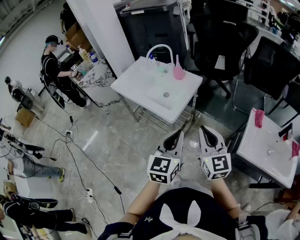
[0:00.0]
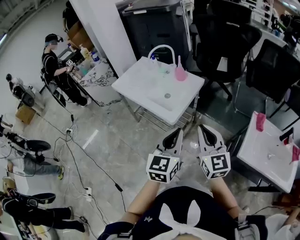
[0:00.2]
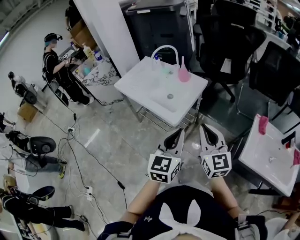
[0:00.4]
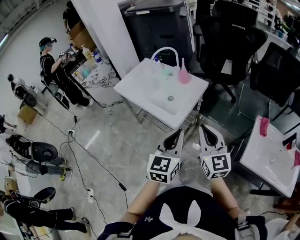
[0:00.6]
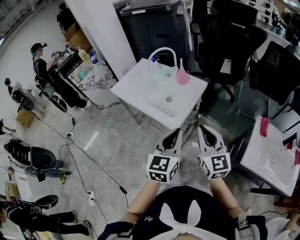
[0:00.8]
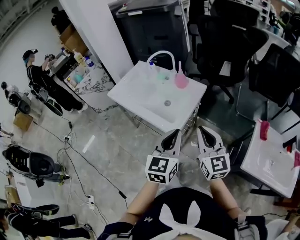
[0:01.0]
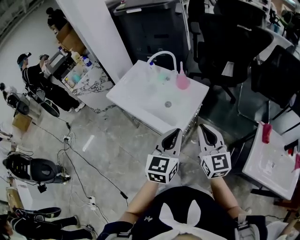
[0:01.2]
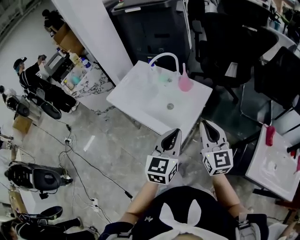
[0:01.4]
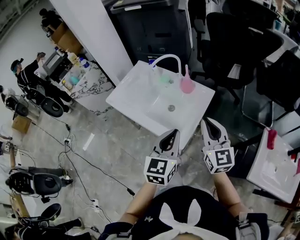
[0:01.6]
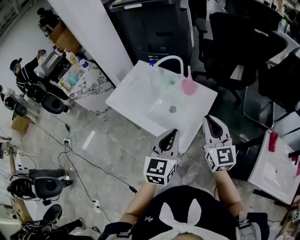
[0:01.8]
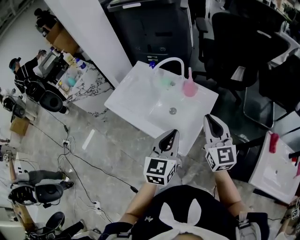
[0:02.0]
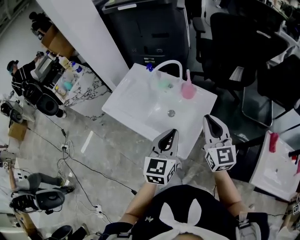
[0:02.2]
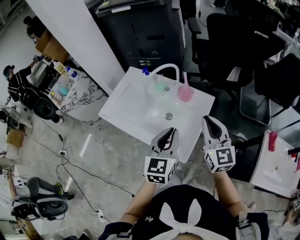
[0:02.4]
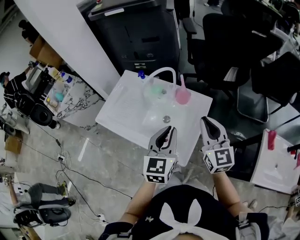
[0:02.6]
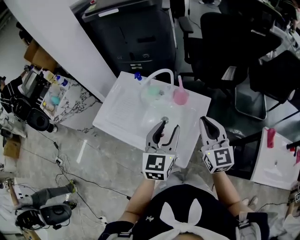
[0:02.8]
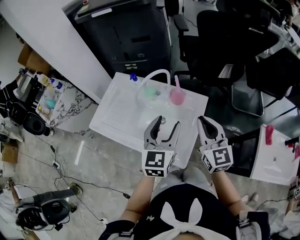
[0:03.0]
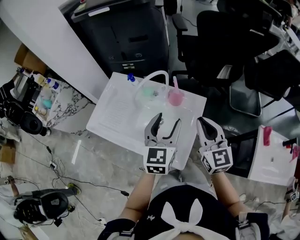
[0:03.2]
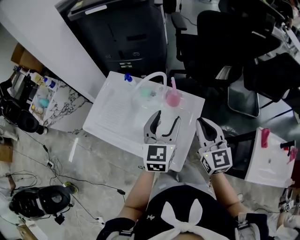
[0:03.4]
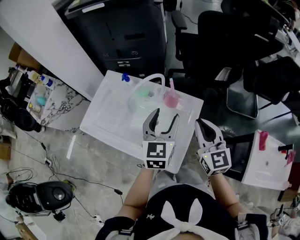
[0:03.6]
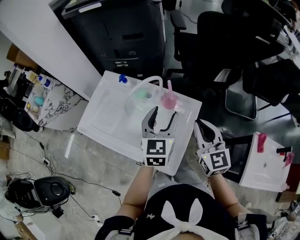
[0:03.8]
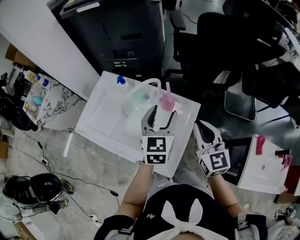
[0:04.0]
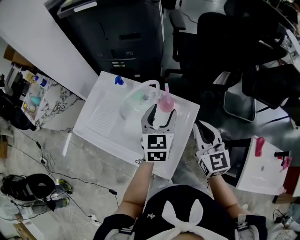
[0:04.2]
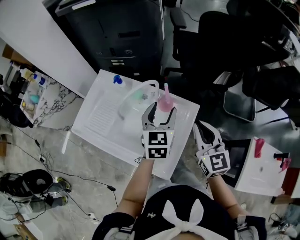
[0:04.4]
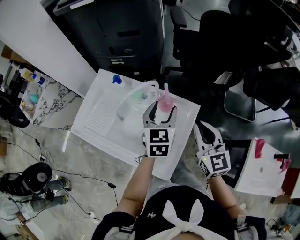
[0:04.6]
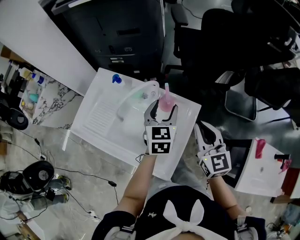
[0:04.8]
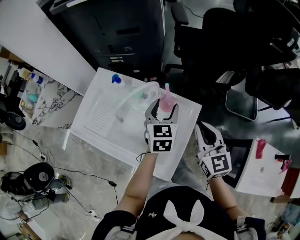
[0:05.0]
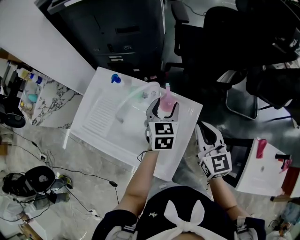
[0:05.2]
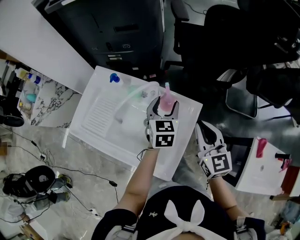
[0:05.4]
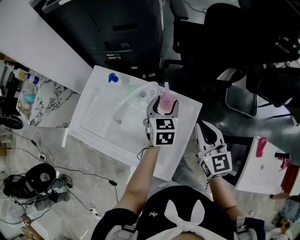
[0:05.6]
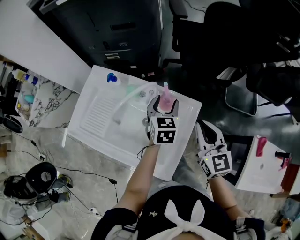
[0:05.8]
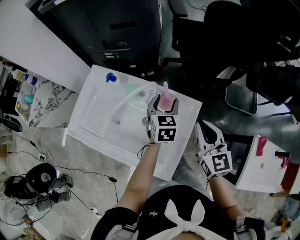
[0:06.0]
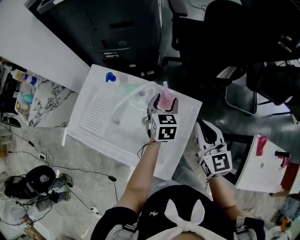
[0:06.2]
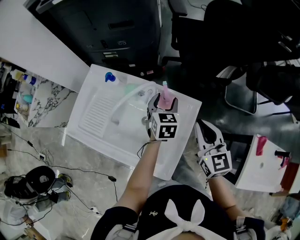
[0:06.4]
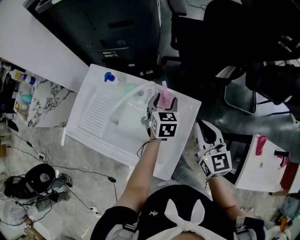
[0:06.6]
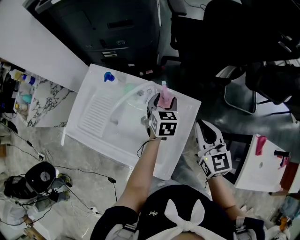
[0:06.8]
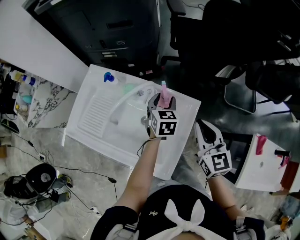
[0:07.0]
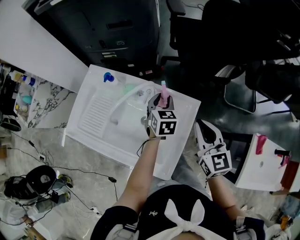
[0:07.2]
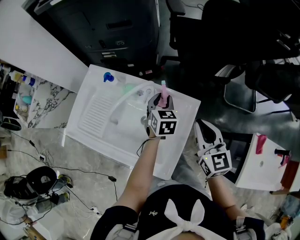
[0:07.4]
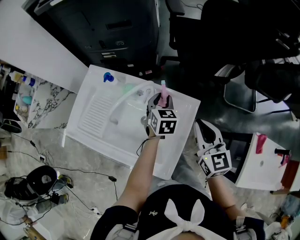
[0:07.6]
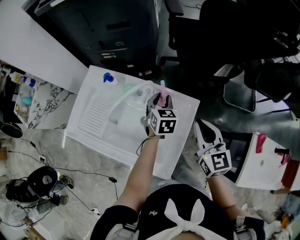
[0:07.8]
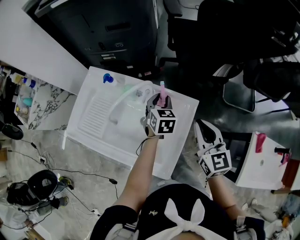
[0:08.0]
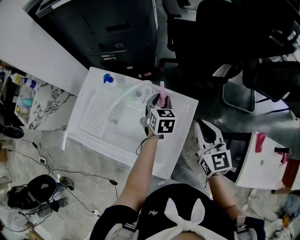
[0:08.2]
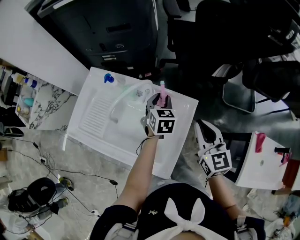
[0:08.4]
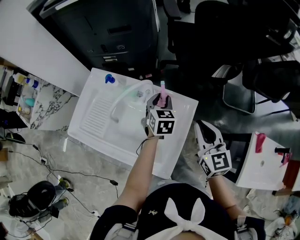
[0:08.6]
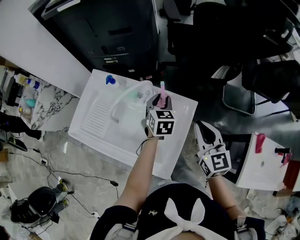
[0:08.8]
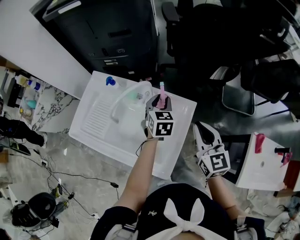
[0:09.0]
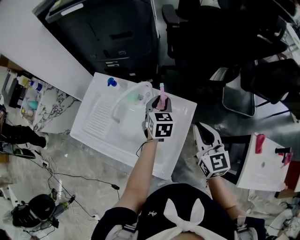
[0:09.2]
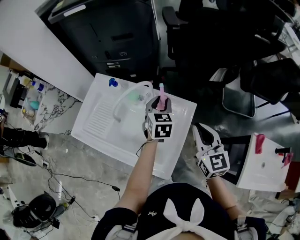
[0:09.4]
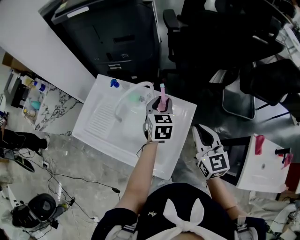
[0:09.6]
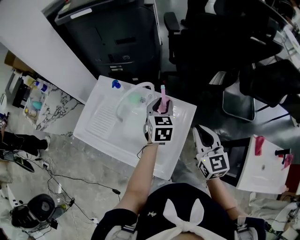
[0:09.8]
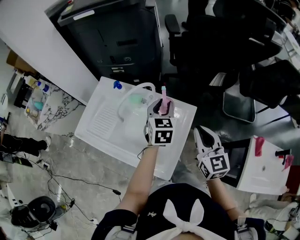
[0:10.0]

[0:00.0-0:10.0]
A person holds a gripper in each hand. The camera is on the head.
0:00.0 to 0:01.4: Both grippers move forward, approximately 20 cm.
0:01.4 to 0:02.8: Both grippers move forward, roughly 15 cm. The left gripper opens.
0:02.8 to 0:04.2: The right gripper shifts roughly 5 cm forward. Meanwhile the left gripper travels forward by roughly 15 cm.
0:04.2 to 0:05.8: The left gripper heads downward and forward, covering about 10 cm.
0:05.8 to 0:07.2: The left gripper closes its fingers.
0:07.2 to 0:08.6: The grippers move only a little.
0:08.6 to 0:10.0: The left gripper is displaced upward by some 10 cm.

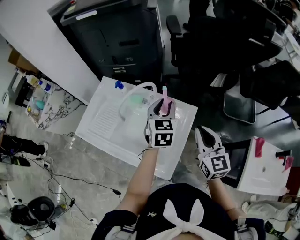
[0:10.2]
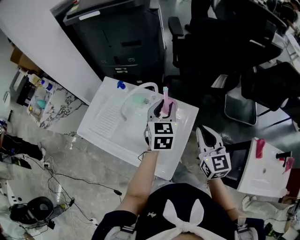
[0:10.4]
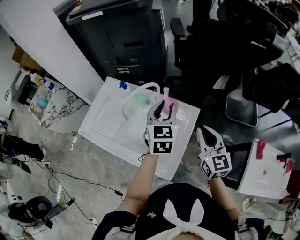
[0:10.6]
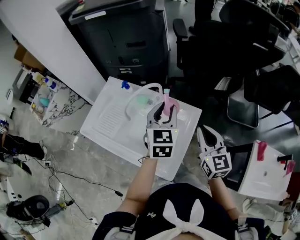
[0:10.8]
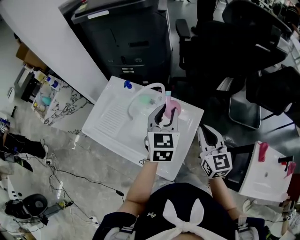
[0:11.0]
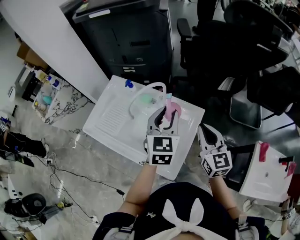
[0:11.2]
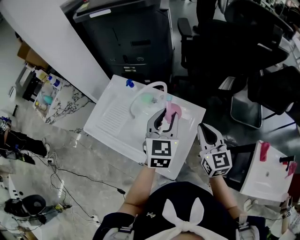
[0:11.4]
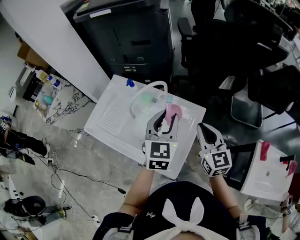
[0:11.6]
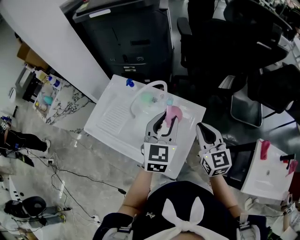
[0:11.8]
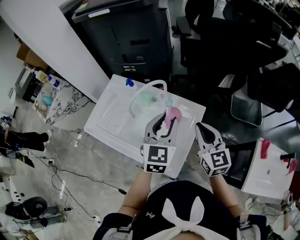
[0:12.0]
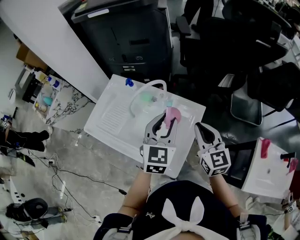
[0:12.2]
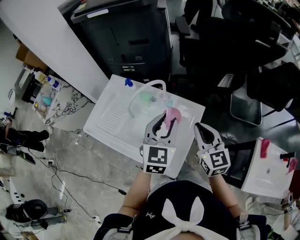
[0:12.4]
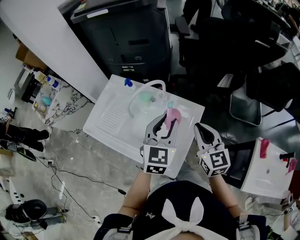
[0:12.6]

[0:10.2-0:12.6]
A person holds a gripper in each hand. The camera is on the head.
0:10.2 to 0:11.4: The left gripper moves backward and upward, about 10 cm.
0:11.4 to 0:12.6: The grippers stay close to where they were, moving slightly.

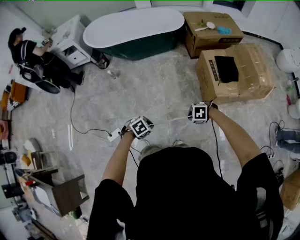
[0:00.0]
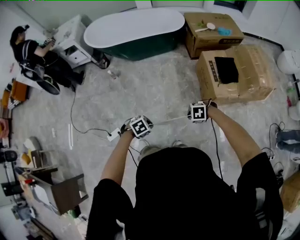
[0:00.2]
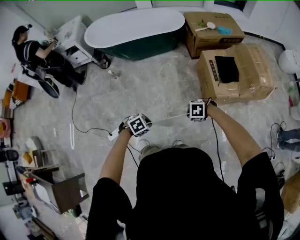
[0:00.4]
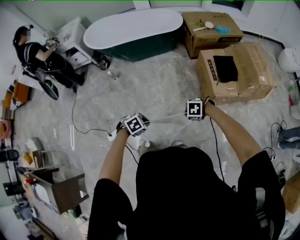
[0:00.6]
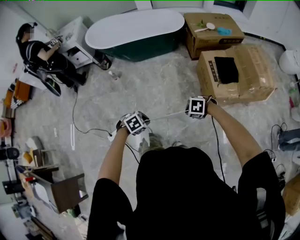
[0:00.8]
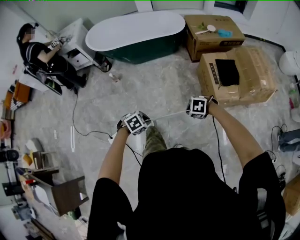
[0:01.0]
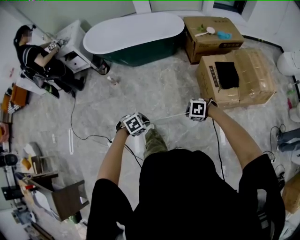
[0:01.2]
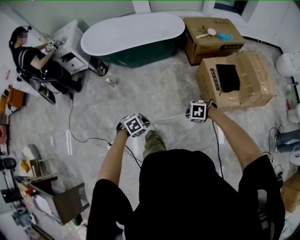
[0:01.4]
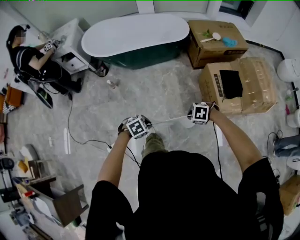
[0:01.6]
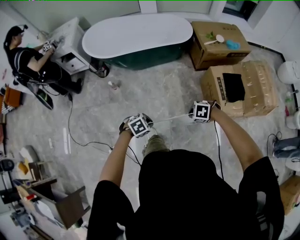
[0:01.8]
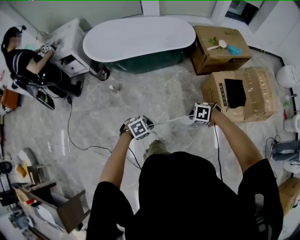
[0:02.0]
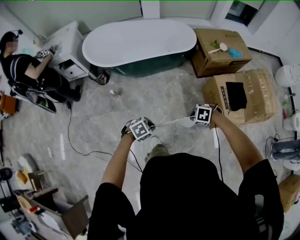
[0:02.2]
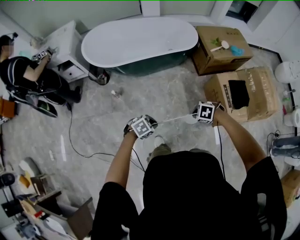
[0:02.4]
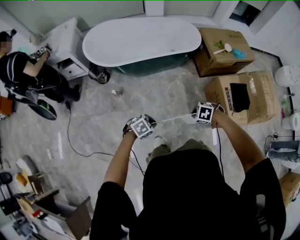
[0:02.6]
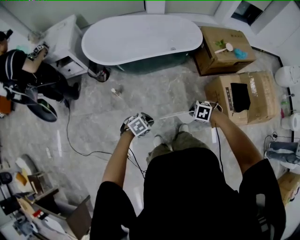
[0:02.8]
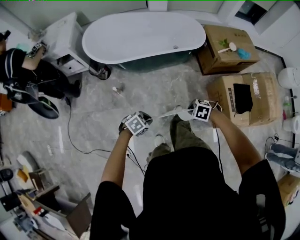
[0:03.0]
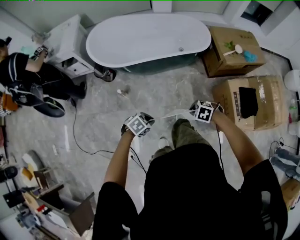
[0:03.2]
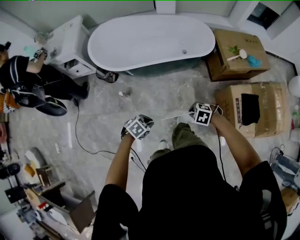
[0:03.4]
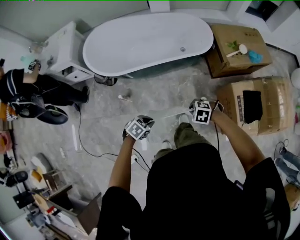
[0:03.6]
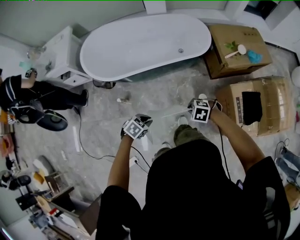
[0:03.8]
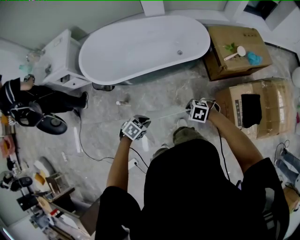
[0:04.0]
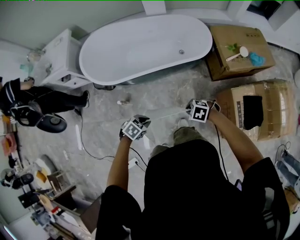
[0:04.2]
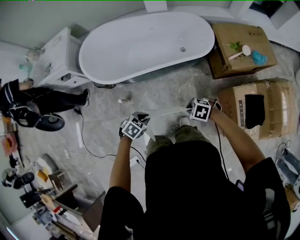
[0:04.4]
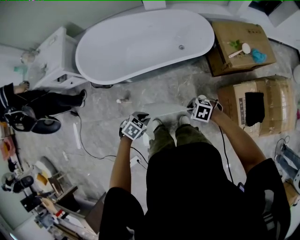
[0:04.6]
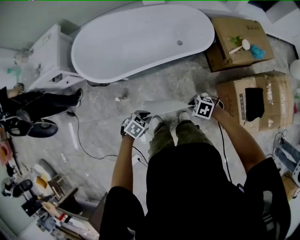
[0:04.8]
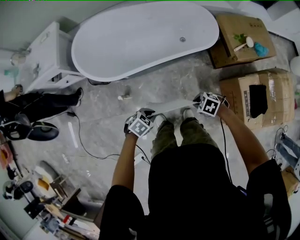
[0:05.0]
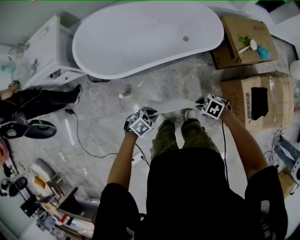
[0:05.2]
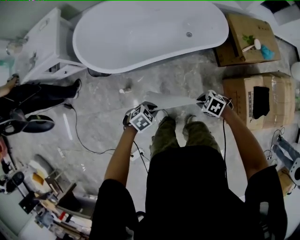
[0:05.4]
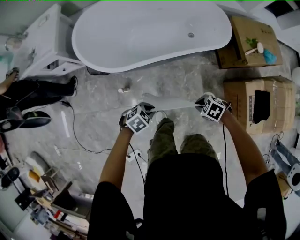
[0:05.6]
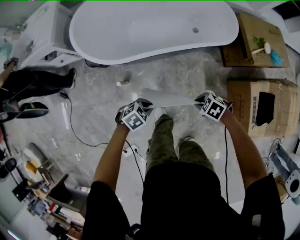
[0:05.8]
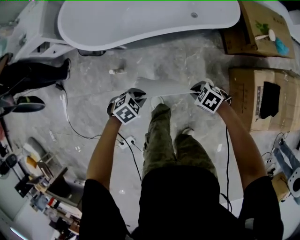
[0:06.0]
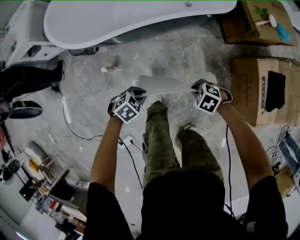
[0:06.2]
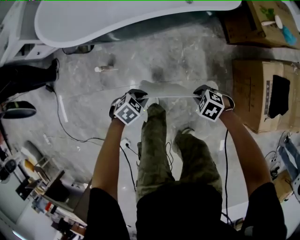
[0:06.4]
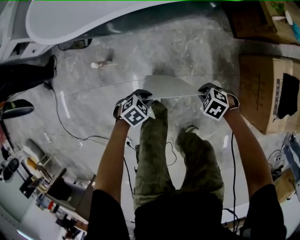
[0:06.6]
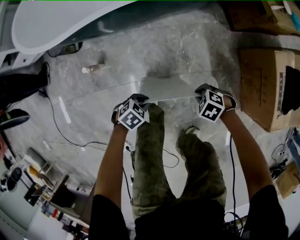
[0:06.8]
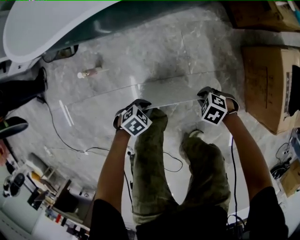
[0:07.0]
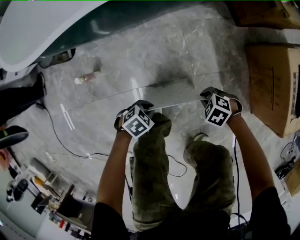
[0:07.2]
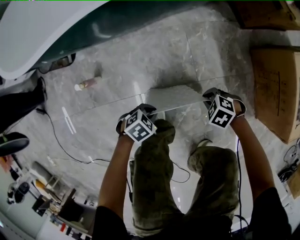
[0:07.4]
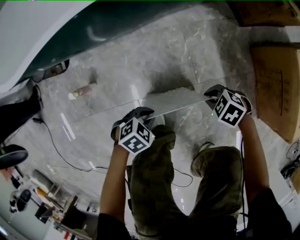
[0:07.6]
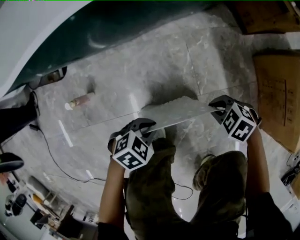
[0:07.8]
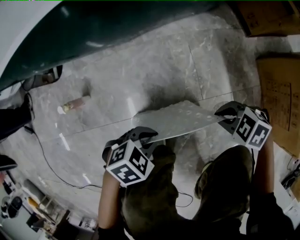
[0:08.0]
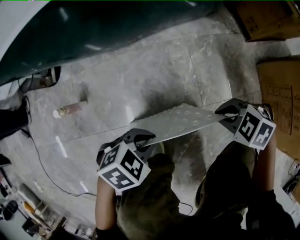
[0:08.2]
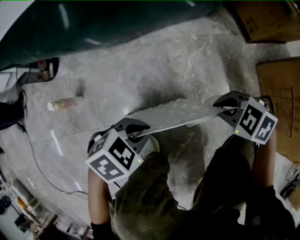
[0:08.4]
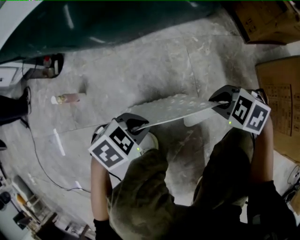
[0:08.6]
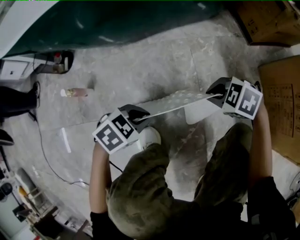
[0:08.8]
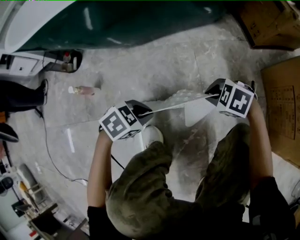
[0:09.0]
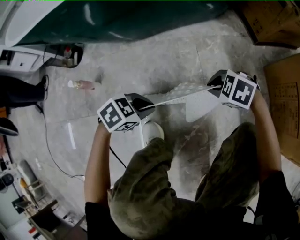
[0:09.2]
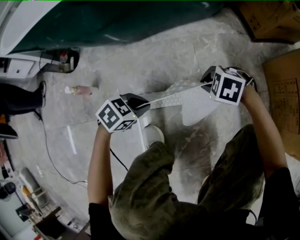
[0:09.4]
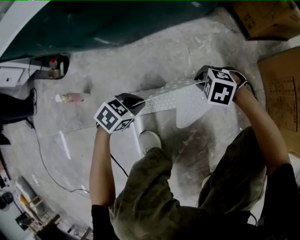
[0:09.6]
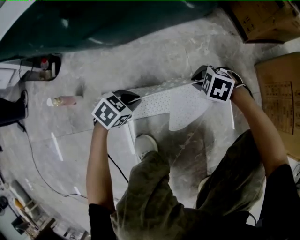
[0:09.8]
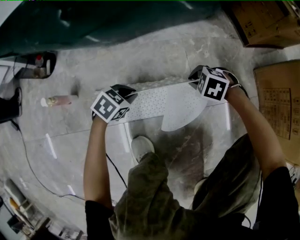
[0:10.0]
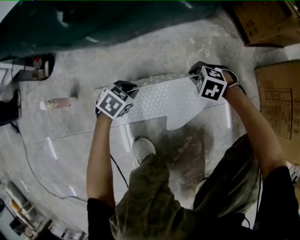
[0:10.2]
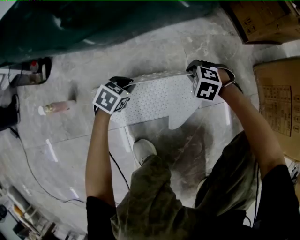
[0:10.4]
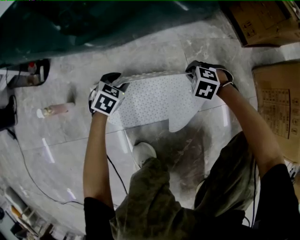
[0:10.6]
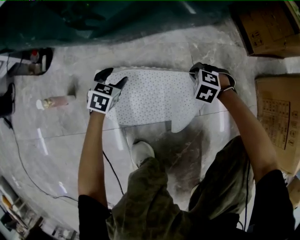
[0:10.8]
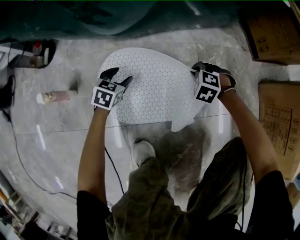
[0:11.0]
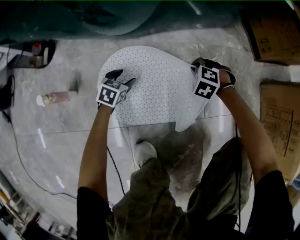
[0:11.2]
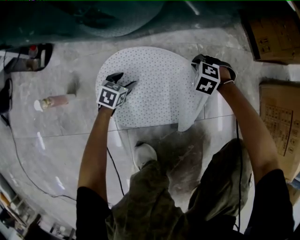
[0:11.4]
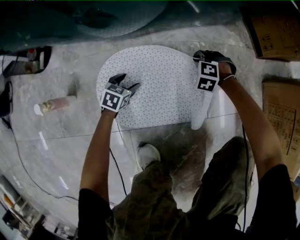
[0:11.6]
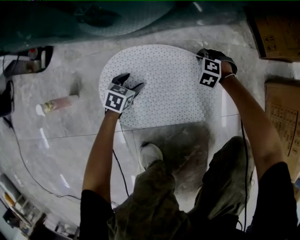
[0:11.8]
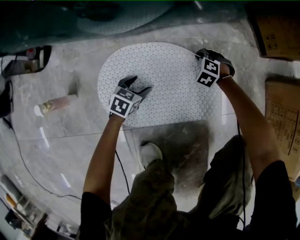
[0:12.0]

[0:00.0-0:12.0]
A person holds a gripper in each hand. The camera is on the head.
0:00.0 to 0:01.6: The right gripper moves roughly 15 cm. Meanwhile the left gripper shifts by approximately 15 cm.
0:01.6 to 0:03.0: The right gripper changes place by some 30 cm. The left gripper ends up roughly 30 cm from where it was.
0:03.0 to 0:04.4: The left gripper ends up roughly 25 cm from where it was. The right gripper shifts by approximately 20 cm.
0:04.4 to 0:06.0: Both grippers travel together downward, about 15 cm.
0:06.0 to 0:07.6: The two grippers go about 40 cm downward.
0:07.6 to 0:09.0: There are only small adjustments of the grippers.
0:09.0 to 0:10.4: The left gripper moves roughly 25 cm. Meanwhile the right gripper ends up some 20 cm from where it was, and swivels roughly 30 degrees.
0:10.4 to 0:12.0: The right gripper changes place by about 15 cm. Meanwhile the left gripper heads downward, covering some 10 cm, and opens up.
